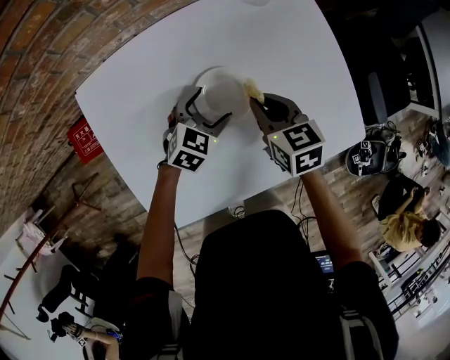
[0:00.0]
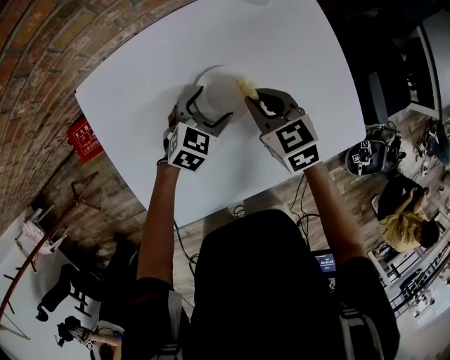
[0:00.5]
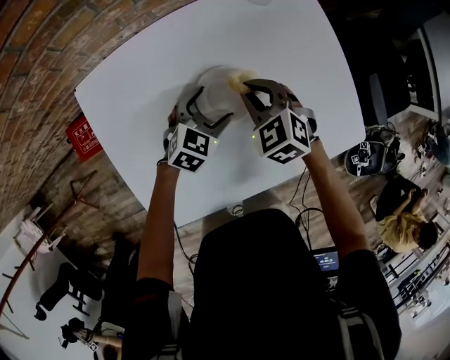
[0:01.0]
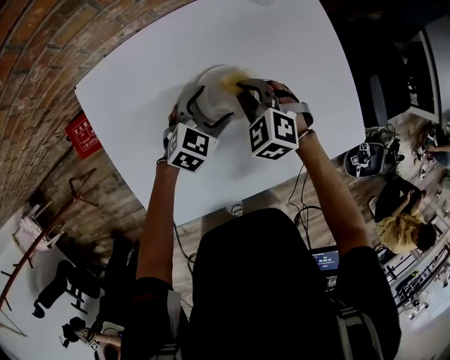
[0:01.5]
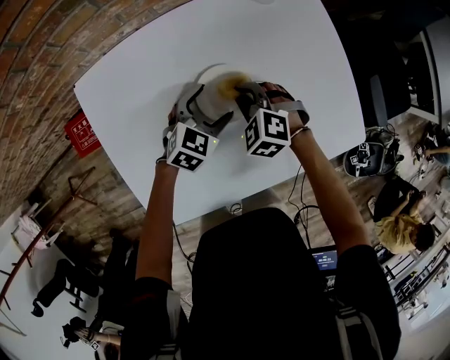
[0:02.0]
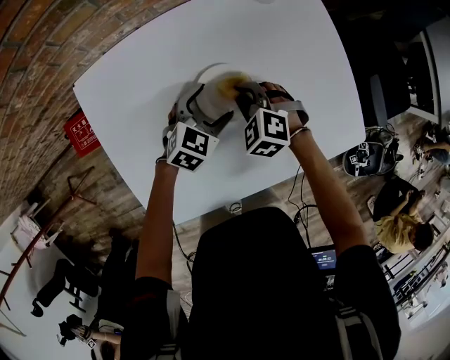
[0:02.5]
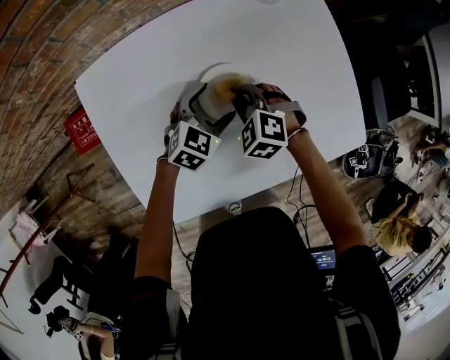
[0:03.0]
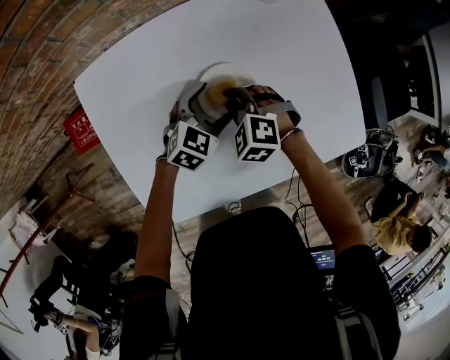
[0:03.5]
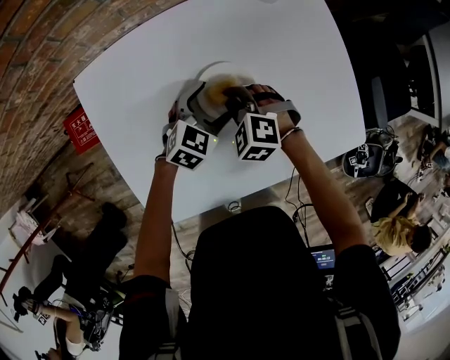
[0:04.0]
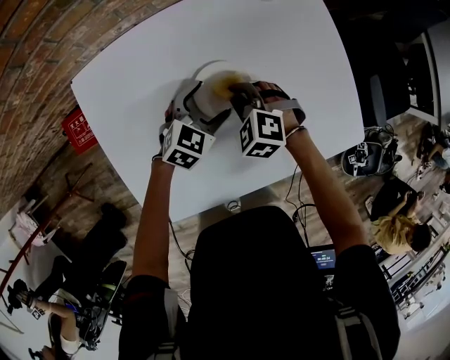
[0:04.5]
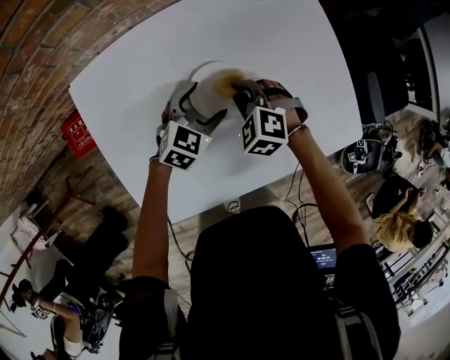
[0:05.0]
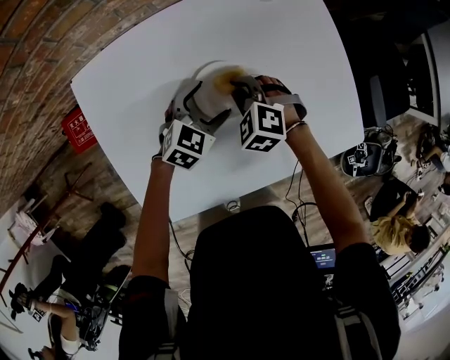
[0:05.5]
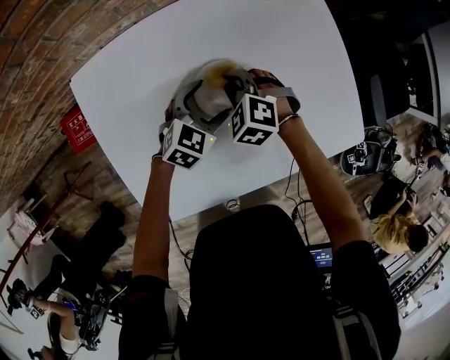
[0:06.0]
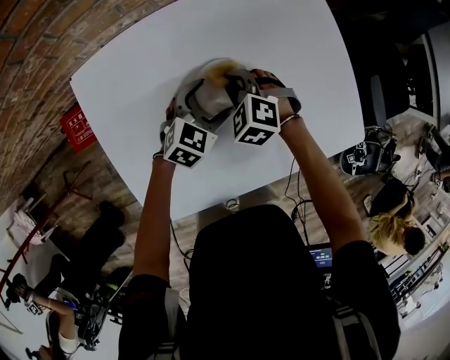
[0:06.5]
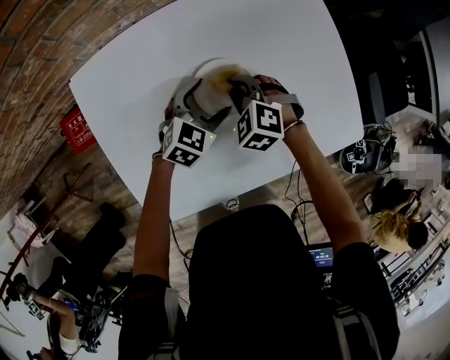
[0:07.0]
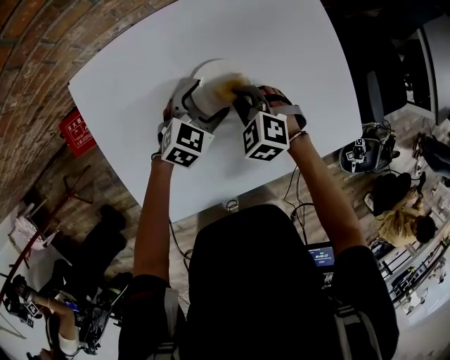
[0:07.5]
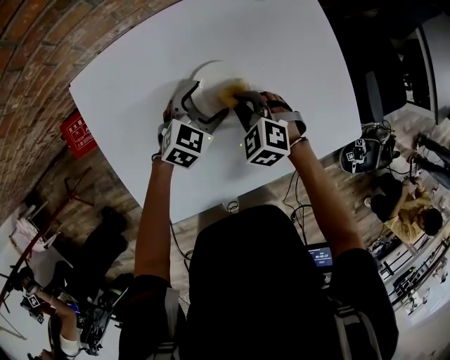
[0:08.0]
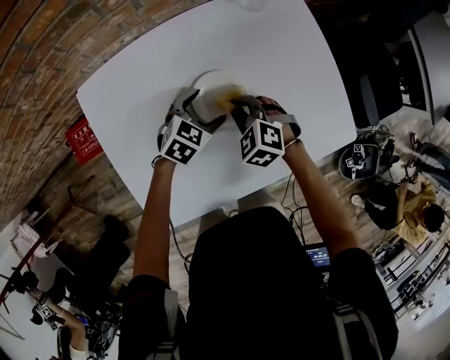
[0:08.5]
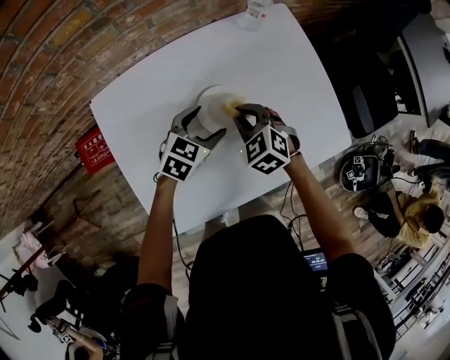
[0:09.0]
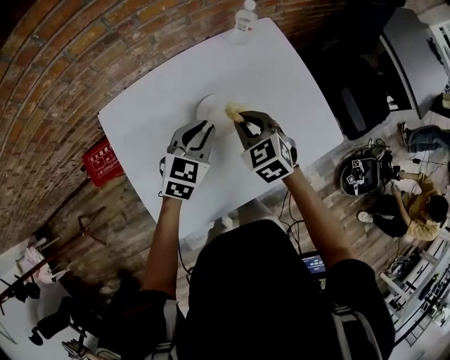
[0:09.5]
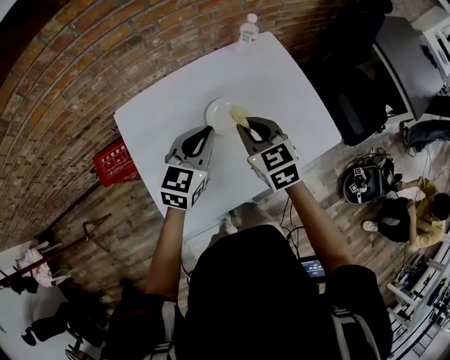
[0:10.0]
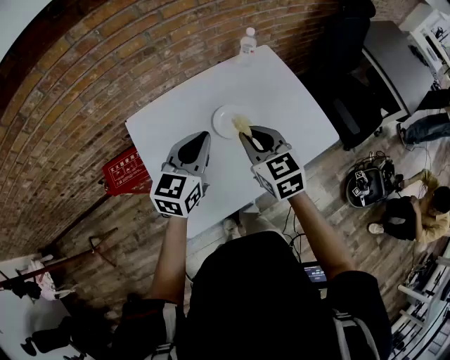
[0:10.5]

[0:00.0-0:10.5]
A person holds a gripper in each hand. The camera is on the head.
0:00.0 to 0:02.0: The right gripper heads downward and to the left, covering roughly 10 cm, and rotates around the line of its fingers by roughly 60 degrees, counterclockwise from behind.
0:02.0 to 0:06.5: The grippers move only a little.
0:06.5 to 0:08.5: The right gripper shifts by about 5 cm.
0:08.5 to 0:10.5: The two grippers go roughly 30 cm upward and backward. The left gripper points its fingers some 30 degrees further upward, and closes up. Meanwhile the right gripper points its fingers about 30 degrees further upward.

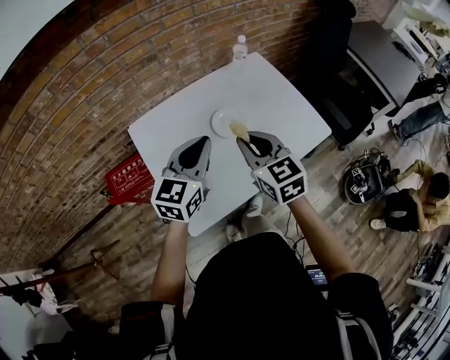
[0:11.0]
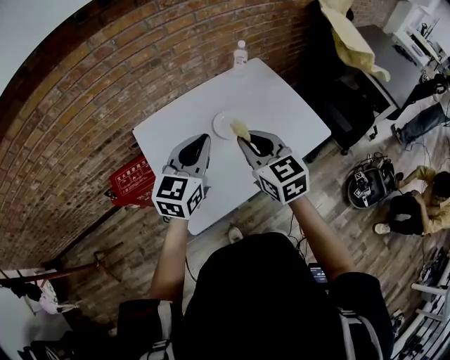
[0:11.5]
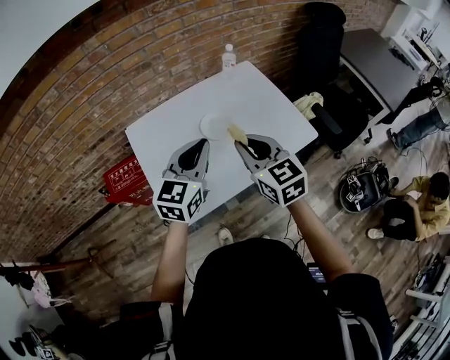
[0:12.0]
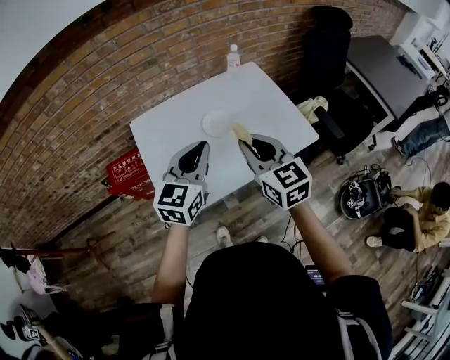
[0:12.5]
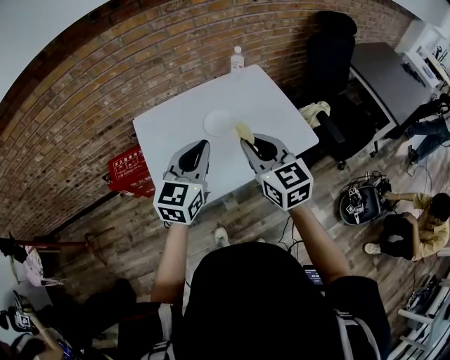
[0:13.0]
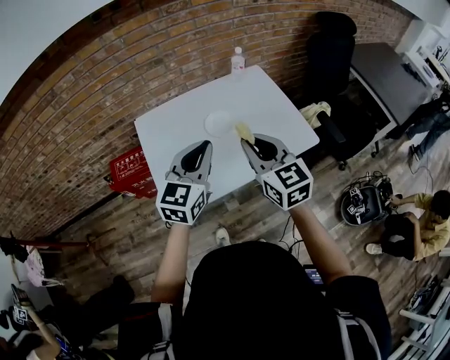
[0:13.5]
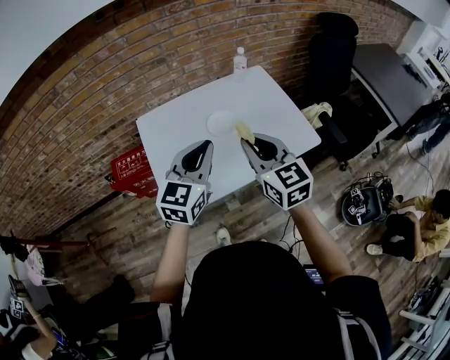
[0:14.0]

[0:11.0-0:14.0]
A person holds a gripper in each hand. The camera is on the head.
0:11.0 to 0:12.5: The left gripper shifts roughly 10 cm backward and to the right; the right gripper goes about 10 cm to the right and backward.
0:12.5 to 0:14.0: The grippers make only small movements.

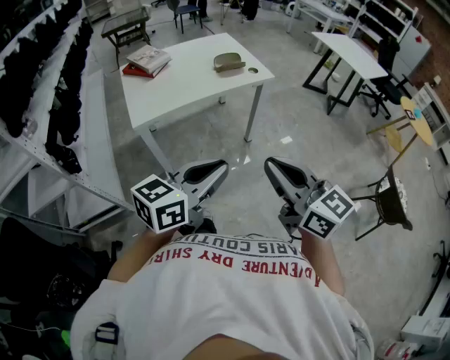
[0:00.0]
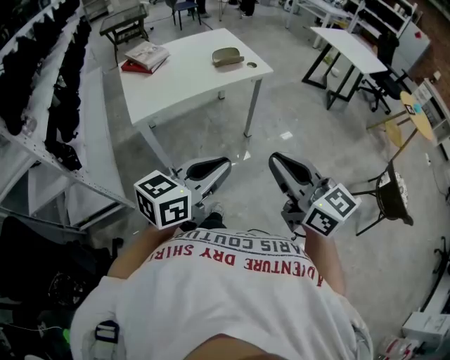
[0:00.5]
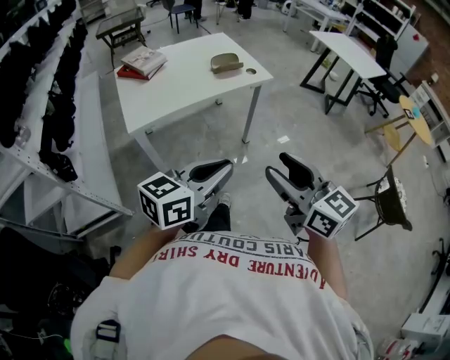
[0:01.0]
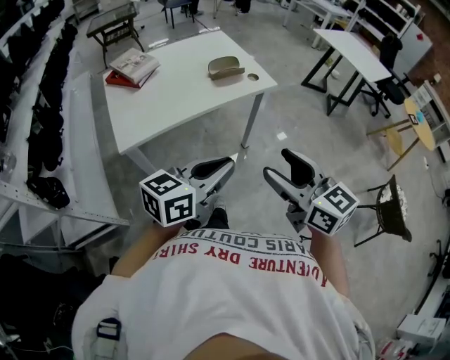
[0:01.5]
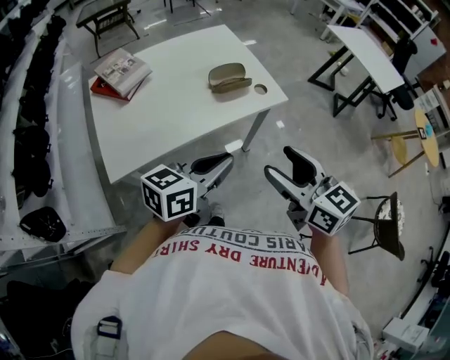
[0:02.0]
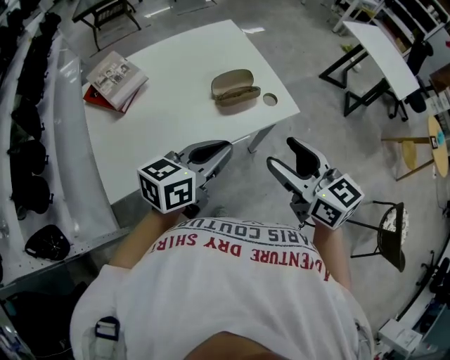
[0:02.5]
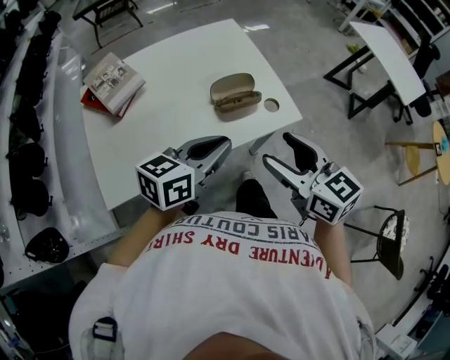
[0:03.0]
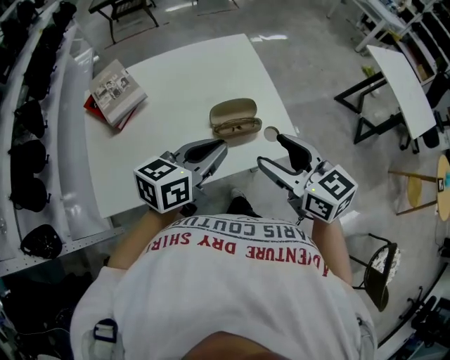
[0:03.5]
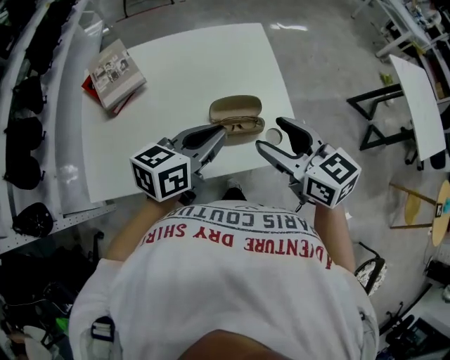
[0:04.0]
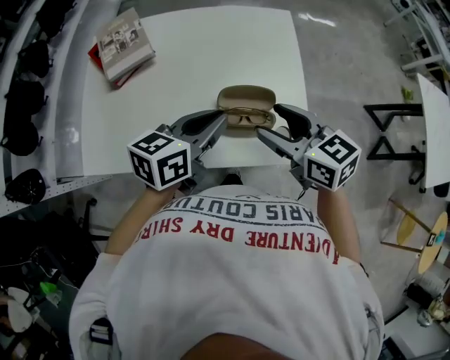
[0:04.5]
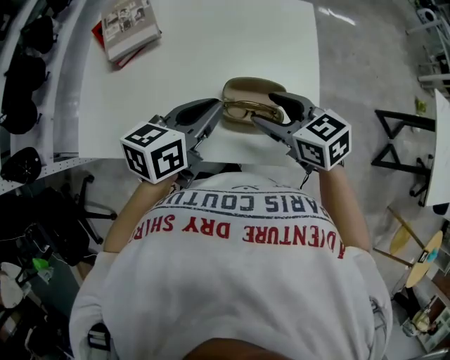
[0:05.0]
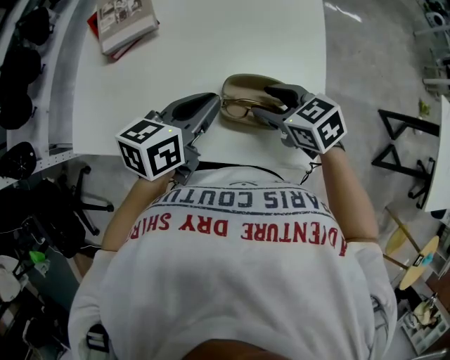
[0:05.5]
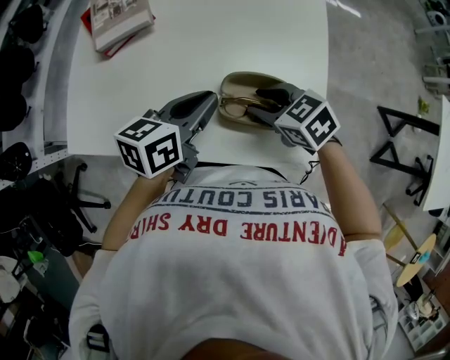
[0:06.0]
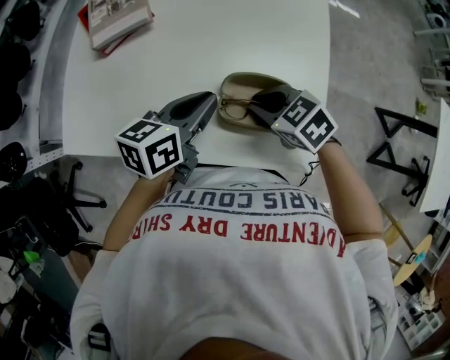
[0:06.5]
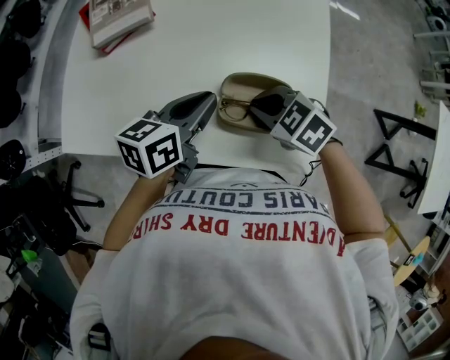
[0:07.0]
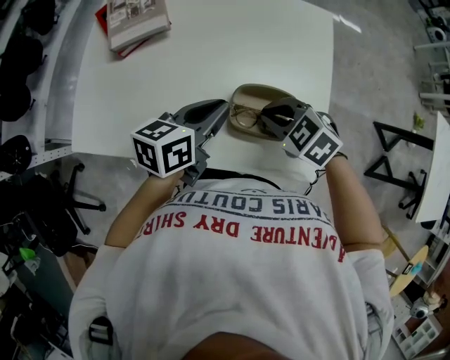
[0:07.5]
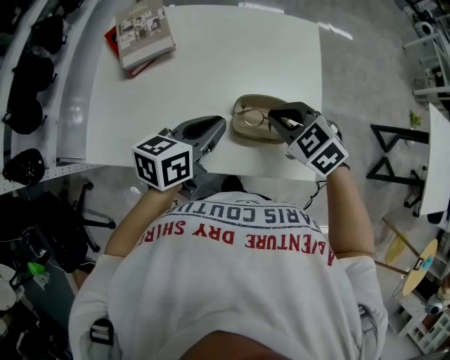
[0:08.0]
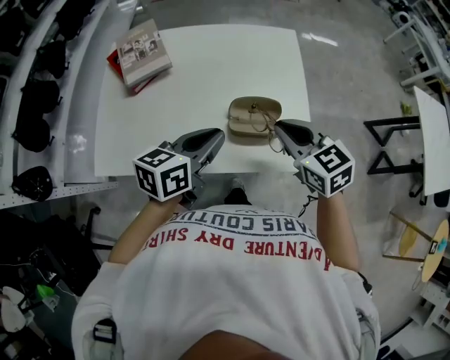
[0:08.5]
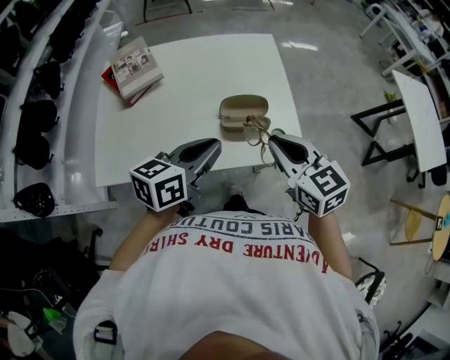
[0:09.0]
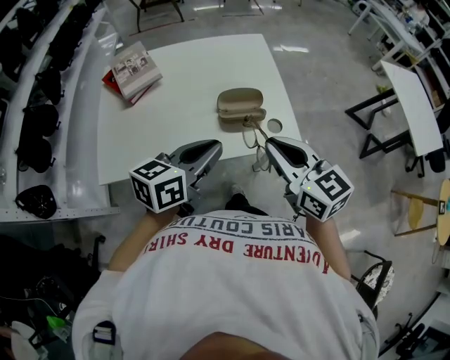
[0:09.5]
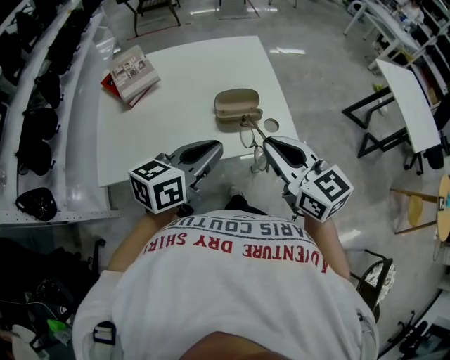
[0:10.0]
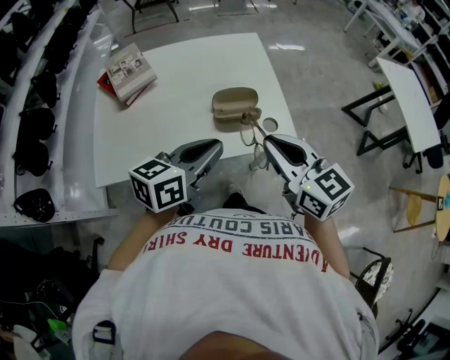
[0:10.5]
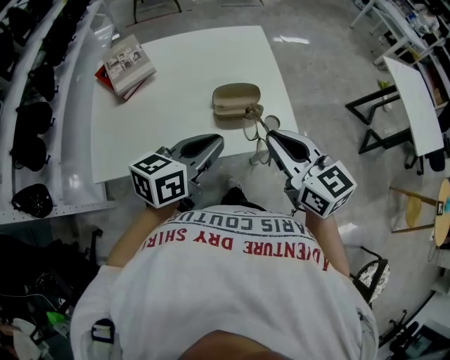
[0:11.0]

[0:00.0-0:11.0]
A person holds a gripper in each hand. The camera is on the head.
0:00.0 to 0:02.0: The grippers both shift forward by some 35 cm. The right gripper opens.
0:02.0 to 0:03.5: The two grippers go about 25 cm forward.
0:03.5 to 0:05.5: The right gripper is displaced downward by about 20 cm, and changes its angle by about 40 degrees. The left gripper ends up about 15 cm from where it was, and rotates roughly 30 degrees.
0:05.5 to 0:07.5: The right gripper swivels some 30 degrees, and closes.
0:07.5 to 0:09.0: The right gripper moves upward, roughly 15 cm, and tilts its fingers some 30 degrees upward. The left gripper shifts by about 15 cm.

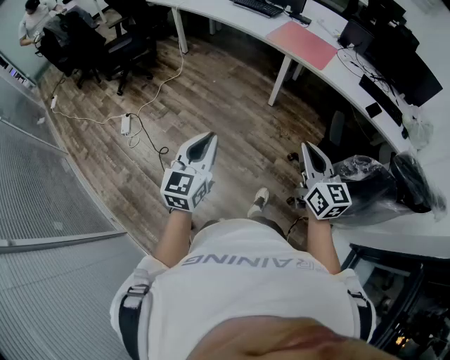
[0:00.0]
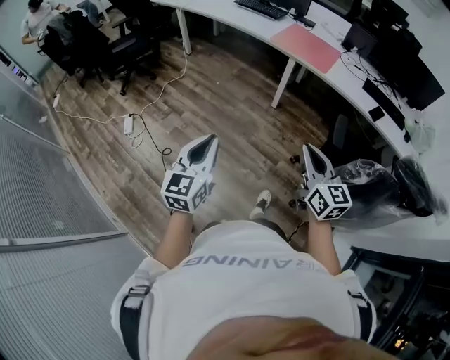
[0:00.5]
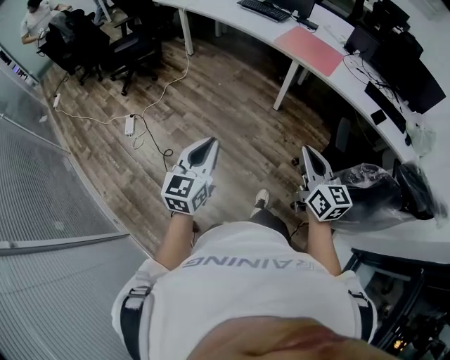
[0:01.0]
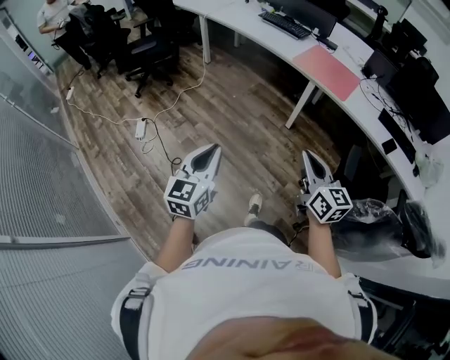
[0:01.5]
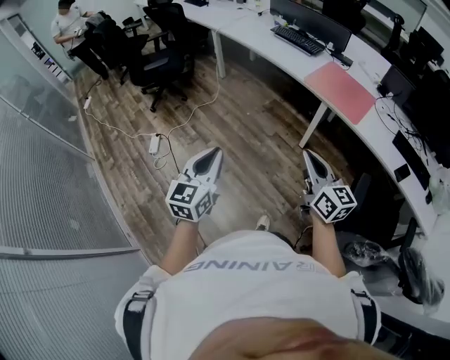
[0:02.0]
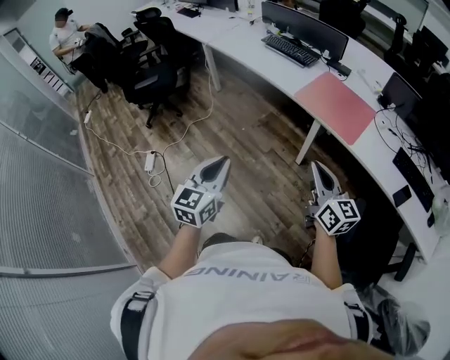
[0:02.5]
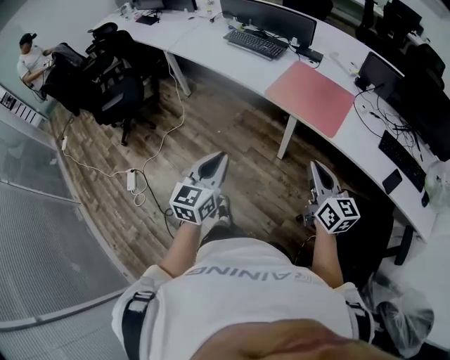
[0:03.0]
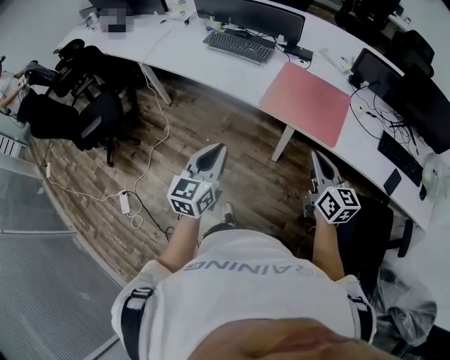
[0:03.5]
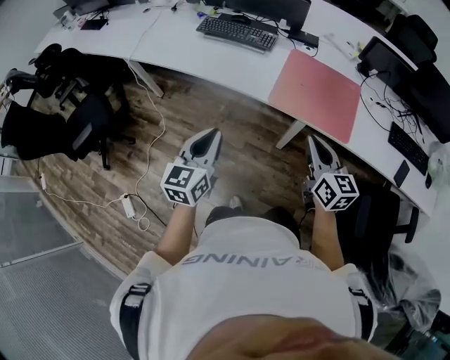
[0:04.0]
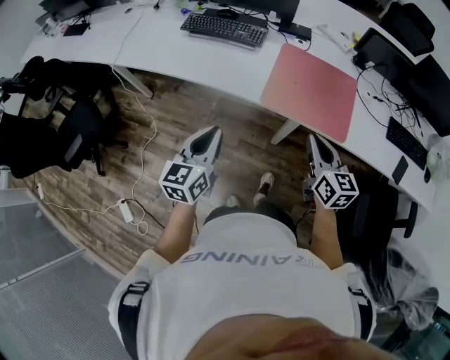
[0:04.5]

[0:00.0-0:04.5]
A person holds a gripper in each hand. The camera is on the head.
0:00.0 to 0:02.0: The grippers both shift forward by roughly 20 cm.
0:02.0 to 0:04.5: The pair of grippers is taken approximately 60 cm. The left gripper rotates some 30 degrees. The right gripper rotates roughly 40 degrees.
